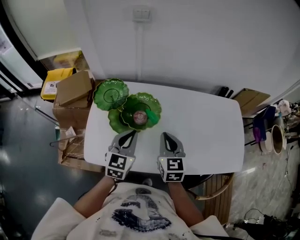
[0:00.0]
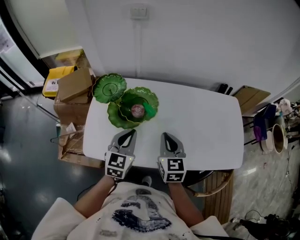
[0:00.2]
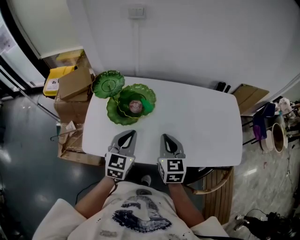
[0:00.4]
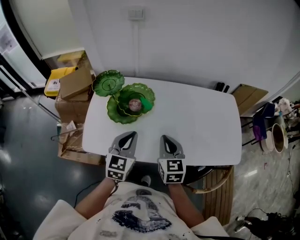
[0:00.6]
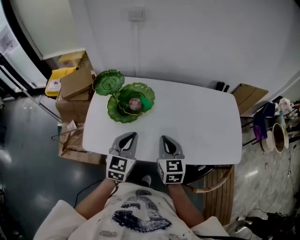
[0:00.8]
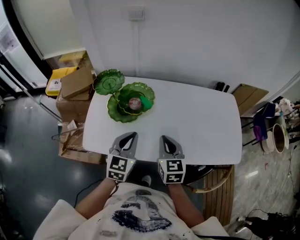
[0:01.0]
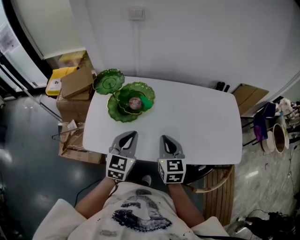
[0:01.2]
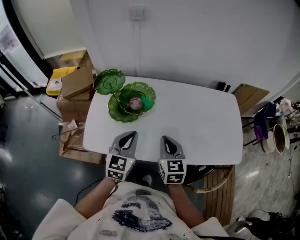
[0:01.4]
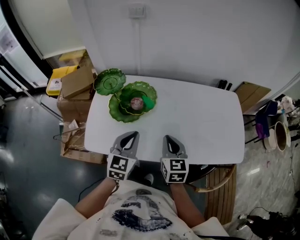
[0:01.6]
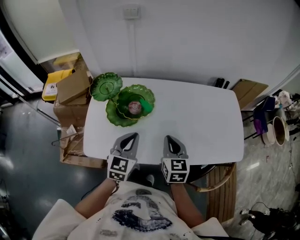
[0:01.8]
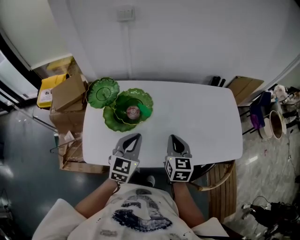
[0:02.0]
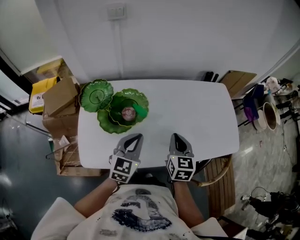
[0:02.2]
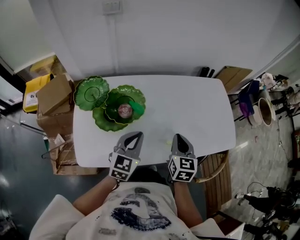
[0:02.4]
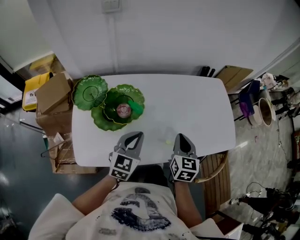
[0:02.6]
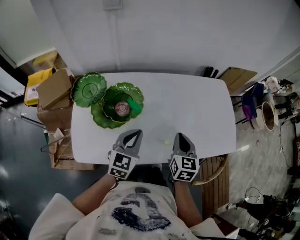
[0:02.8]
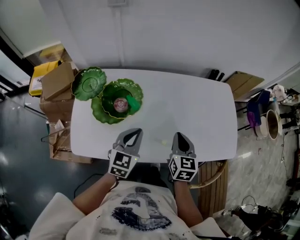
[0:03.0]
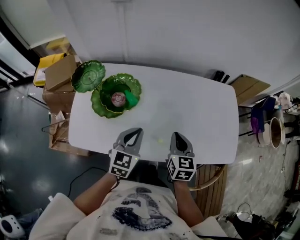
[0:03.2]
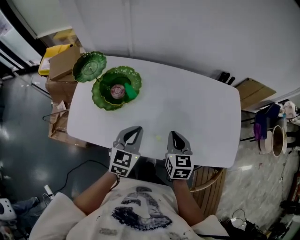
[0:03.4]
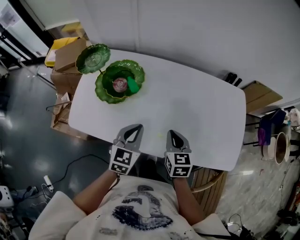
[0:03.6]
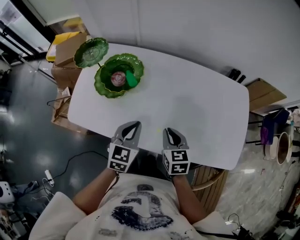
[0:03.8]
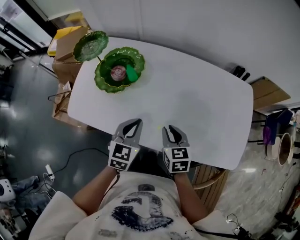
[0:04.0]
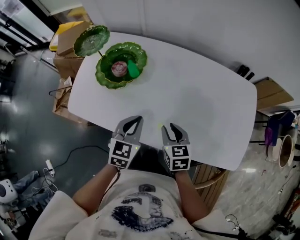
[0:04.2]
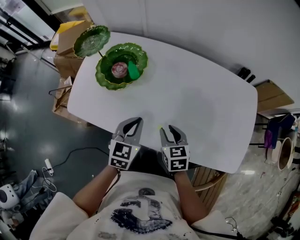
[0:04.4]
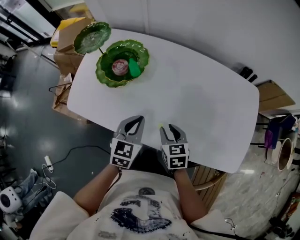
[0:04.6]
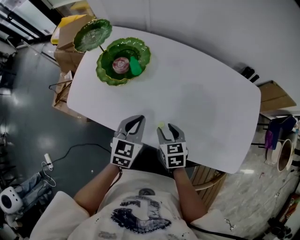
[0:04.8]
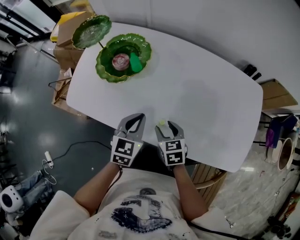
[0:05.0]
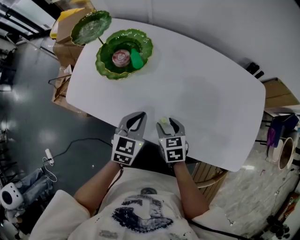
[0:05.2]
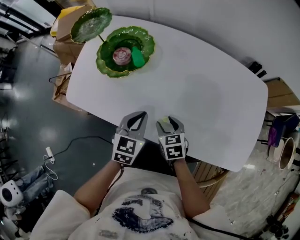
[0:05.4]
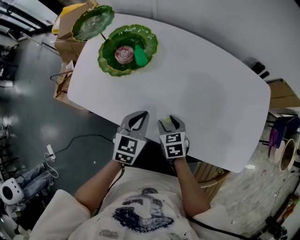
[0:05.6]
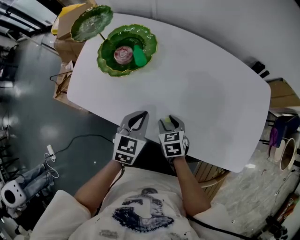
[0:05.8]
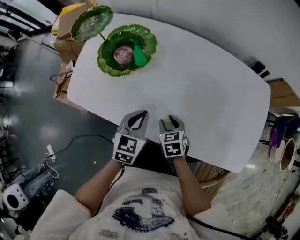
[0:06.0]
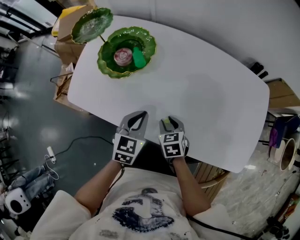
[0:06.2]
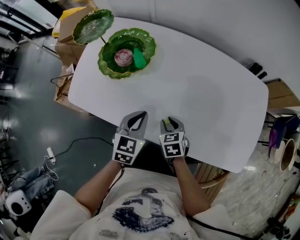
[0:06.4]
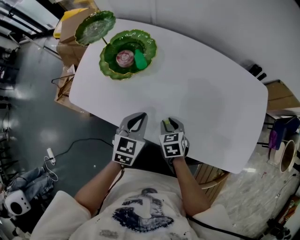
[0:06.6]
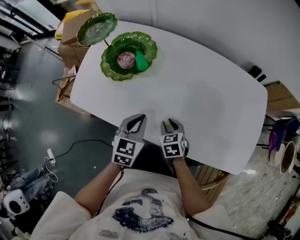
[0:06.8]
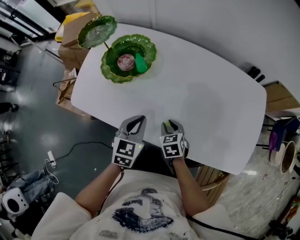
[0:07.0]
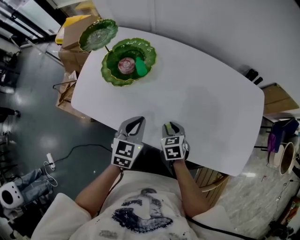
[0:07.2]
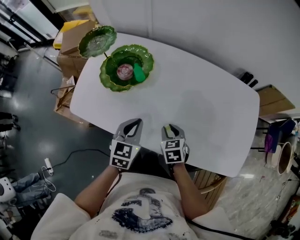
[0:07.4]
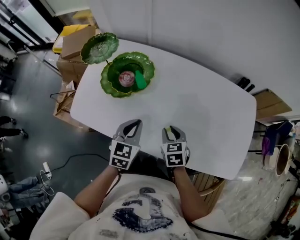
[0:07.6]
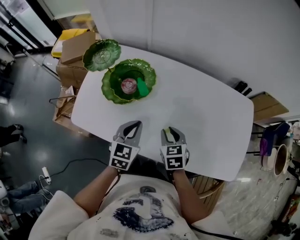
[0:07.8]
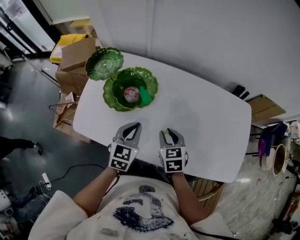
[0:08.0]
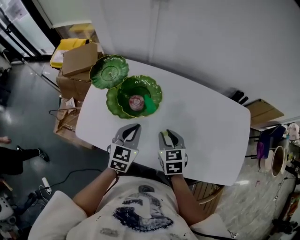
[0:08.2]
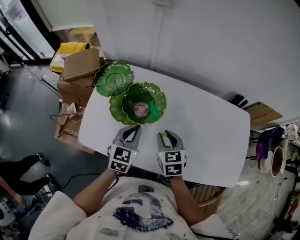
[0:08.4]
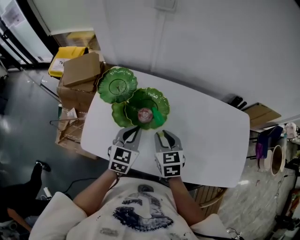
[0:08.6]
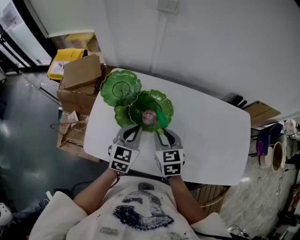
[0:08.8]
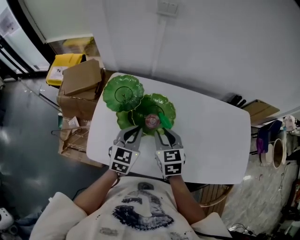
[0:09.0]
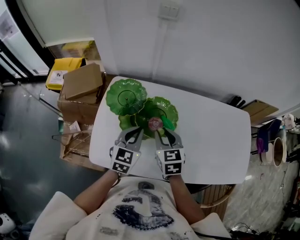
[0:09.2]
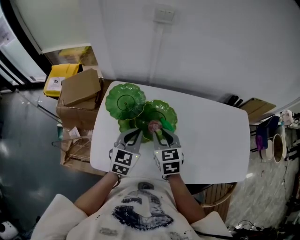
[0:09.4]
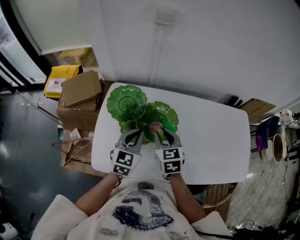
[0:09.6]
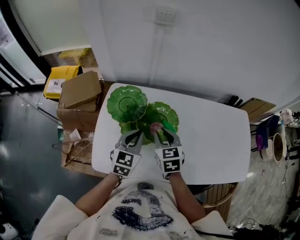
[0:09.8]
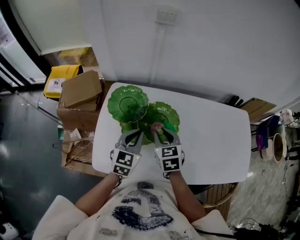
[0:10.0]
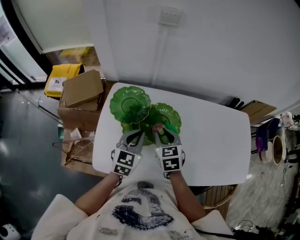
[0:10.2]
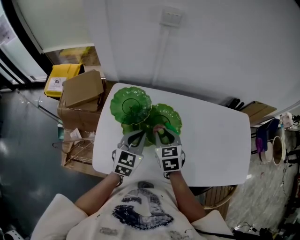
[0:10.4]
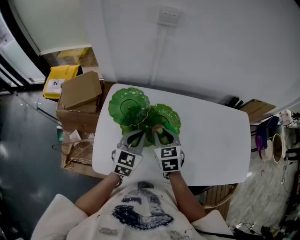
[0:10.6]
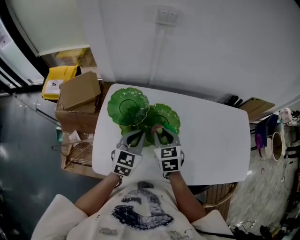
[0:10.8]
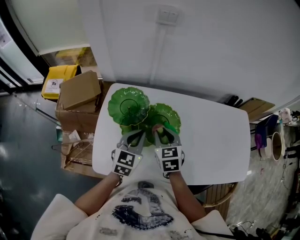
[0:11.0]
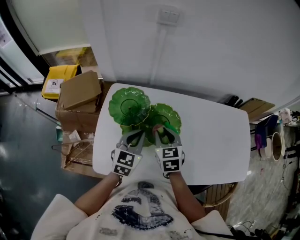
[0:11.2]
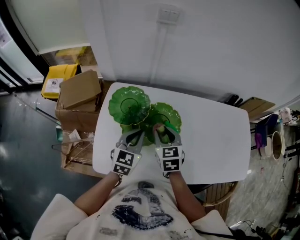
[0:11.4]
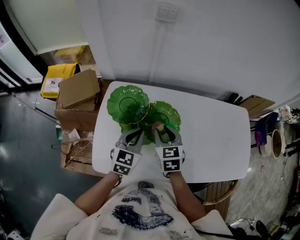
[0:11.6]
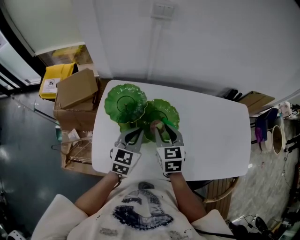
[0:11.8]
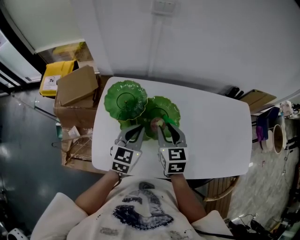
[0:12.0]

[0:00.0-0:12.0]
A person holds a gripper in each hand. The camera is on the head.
0:00.0 to 0:01.6: The grippers both shift backward by roughly 10 cm.
0:01.6 to 0:03.0: The right gripper goes approximately 10 cm to the right and forward; the left gripper heads forward and to the right, covering about 10 cm.
0:03.0 to 0:04.4: The left gripper is displaced downward by approximately 10 cm, and swivels roughly 20 degrees. Meanwhile the right gripper is displaced downward by roughly 15 cm, rotates about 40 degrees, and opens its fingers.
0:04.4 to 0:06.0: The right gripper is displaced downward by approximately 10 cm.
0:06.0 to 0:07.6: The right gripper moves upward, roughly 5 cm; the left gripper changes place by roughly 5 cm.
0:07.6 to 0:09.0: The right gripper moves to the left, upward and forward, some 25 cm, while the left gripper moves to the left, forward and upward, roughly 20 cm.
0:09.0 to 0:10.4: The right gripper changes place by about 5 cm.
0:10.4 to 0:12.0: There are only small adjustments of the grippers.

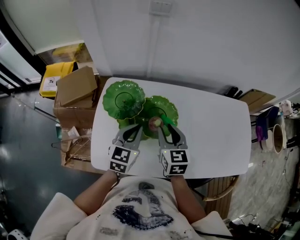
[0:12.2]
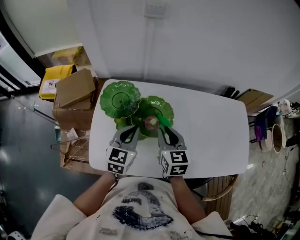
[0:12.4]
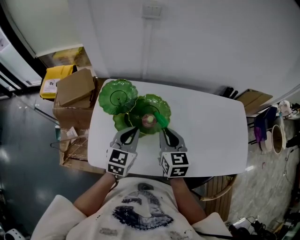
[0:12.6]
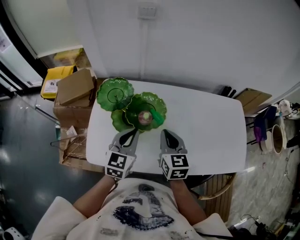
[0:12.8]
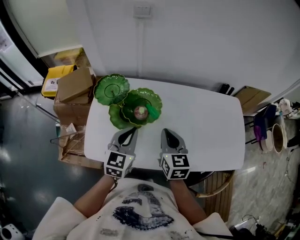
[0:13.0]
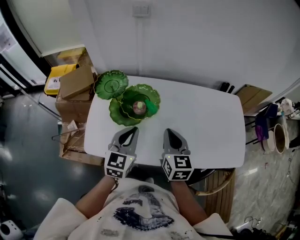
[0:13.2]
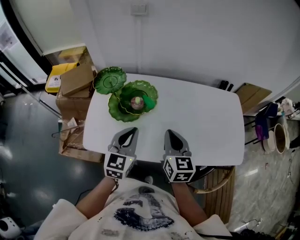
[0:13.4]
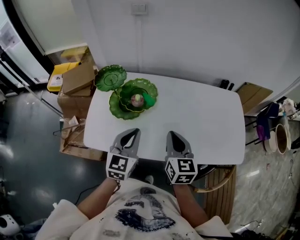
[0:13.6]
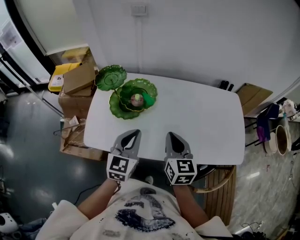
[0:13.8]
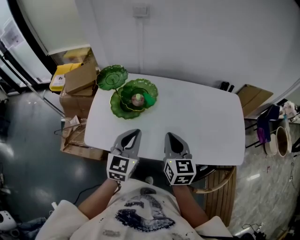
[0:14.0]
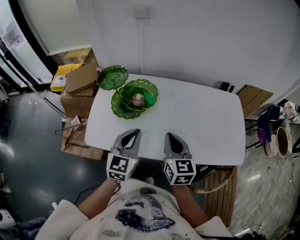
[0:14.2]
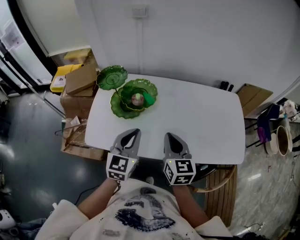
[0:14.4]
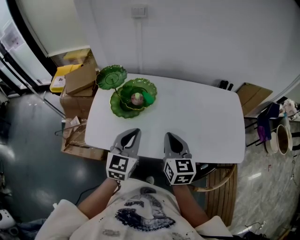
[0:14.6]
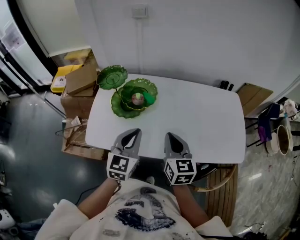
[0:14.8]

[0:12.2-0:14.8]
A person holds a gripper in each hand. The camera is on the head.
0:12.2 to 0:13.4: The right gripper moves backward and to the right, some 20 cm, and closes up. The left gripper goes approximately 15 cm backward, to the right and upward.
0:13.4 to 0:14.8: The left gripper moves about 5 cm.

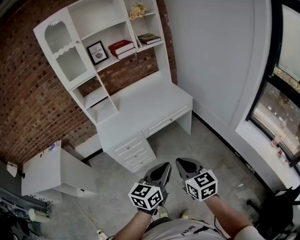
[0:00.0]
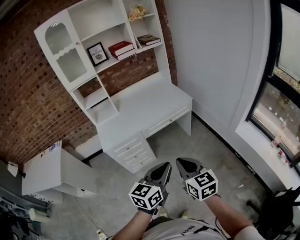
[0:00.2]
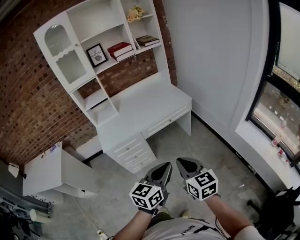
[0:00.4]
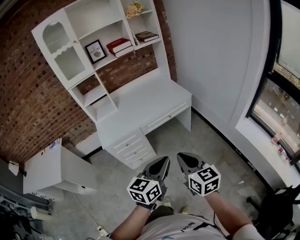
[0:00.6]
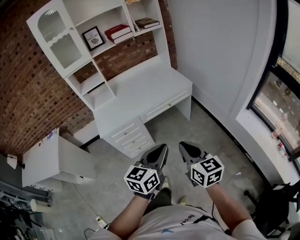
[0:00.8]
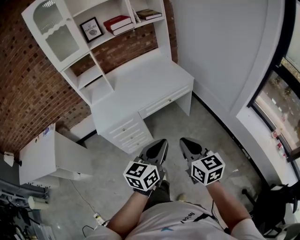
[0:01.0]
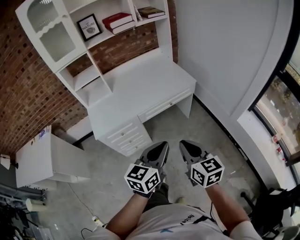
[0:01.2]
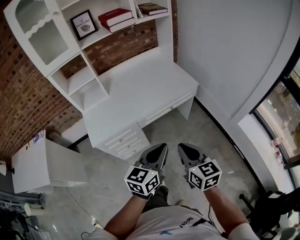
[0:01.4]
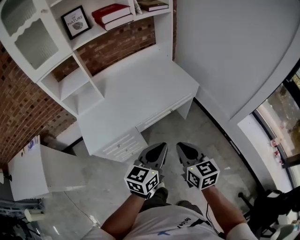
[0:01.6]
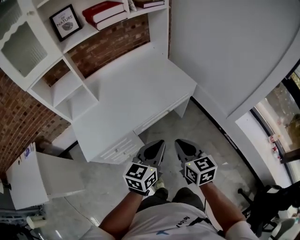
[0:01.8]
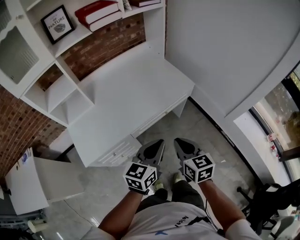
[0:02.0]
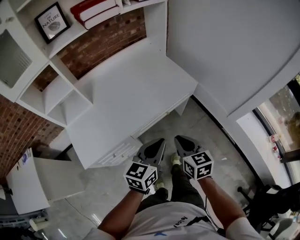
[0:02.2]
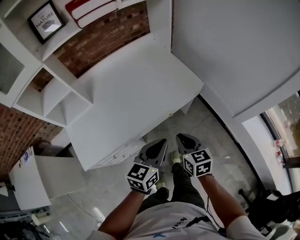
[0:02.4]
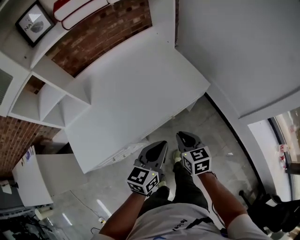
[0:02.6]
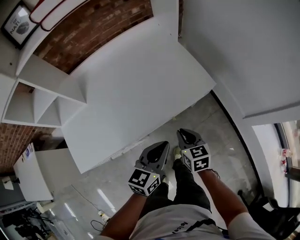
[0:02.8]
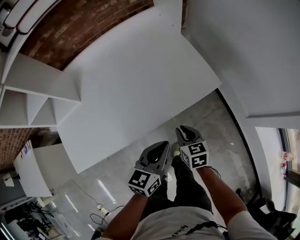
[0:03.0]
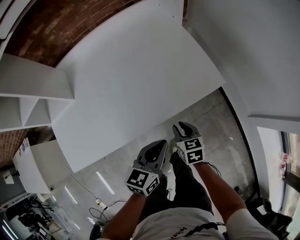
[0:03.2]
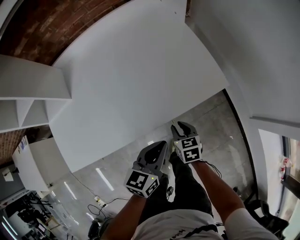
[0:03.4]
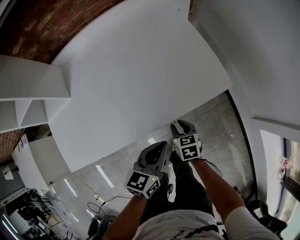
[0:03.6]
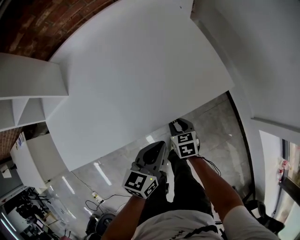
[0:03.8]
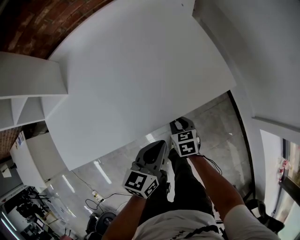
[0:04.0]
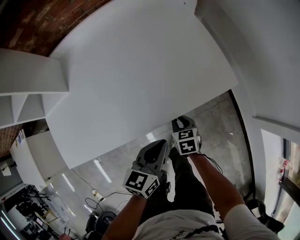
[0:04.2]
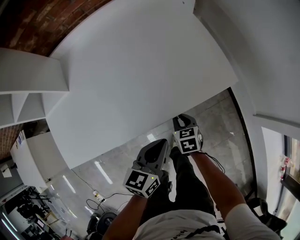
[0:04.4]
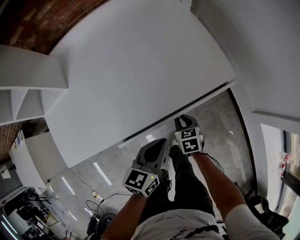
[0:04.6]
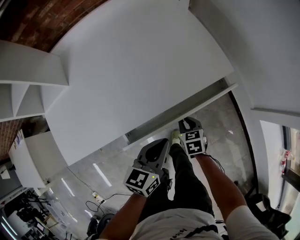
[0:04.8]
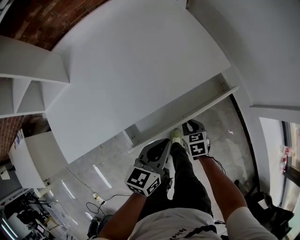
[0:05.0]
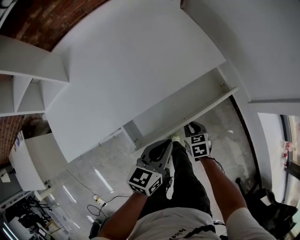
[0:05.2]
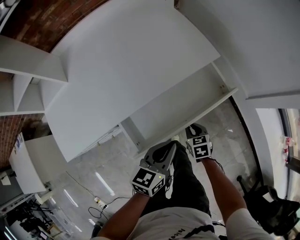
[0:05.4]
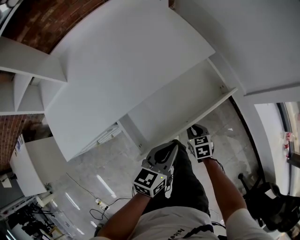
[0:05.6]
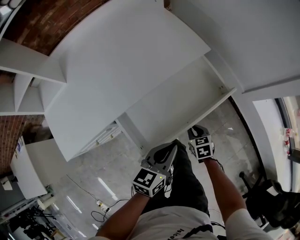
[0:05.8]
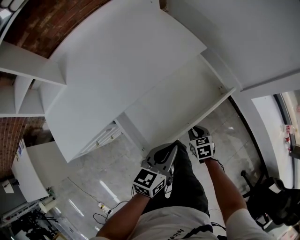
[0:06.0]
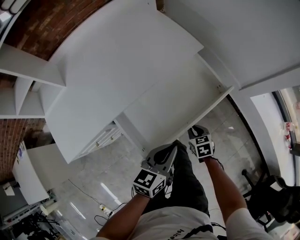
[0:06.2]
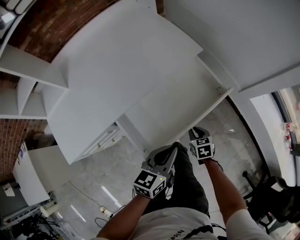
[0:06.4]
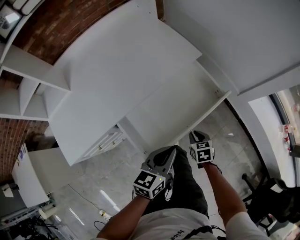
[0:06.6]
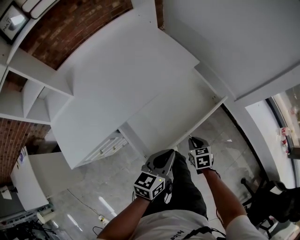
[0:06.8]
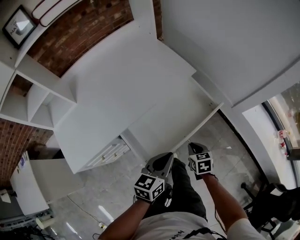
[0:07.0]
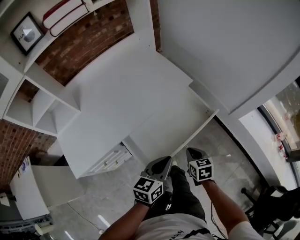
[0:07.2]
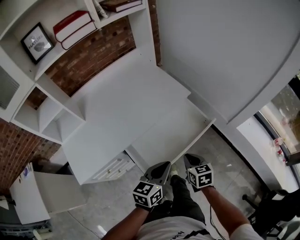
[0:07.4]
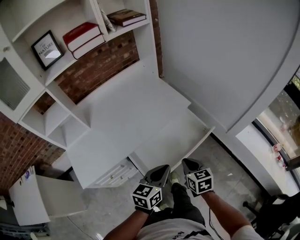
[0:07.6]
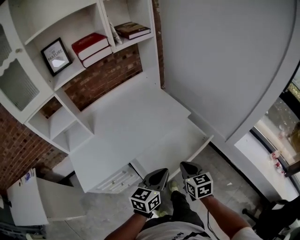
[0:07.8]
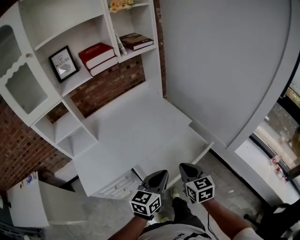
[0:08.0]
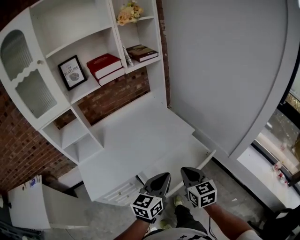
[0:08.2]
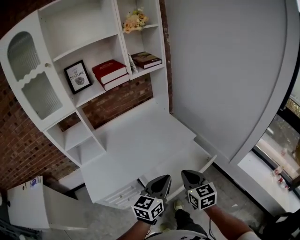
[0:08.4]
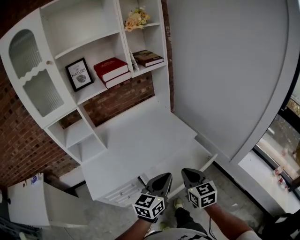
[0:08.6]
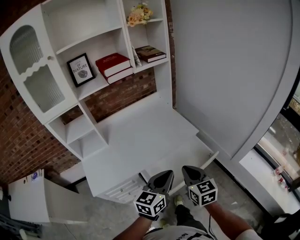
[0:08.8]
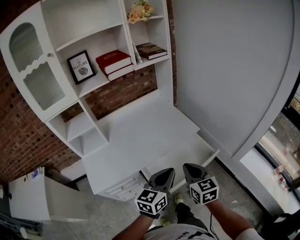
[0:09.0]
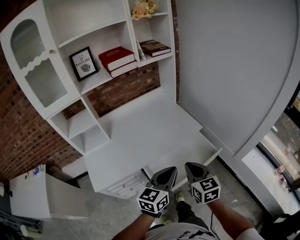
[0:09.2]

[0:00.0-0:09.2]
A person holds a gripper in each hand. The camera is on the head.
0:00.0 to 0:01.6: The grippers both shift forward by approximately 25 cm.
0:01.6 to 0:03.0: Both grippers move forward and downward, roughly 40 cm. The right gripper turns by approximately 20 degrees.
0:03.0 to 0:04.6: The right gripper goes roughly 15 cm downward. The left gripper shifts roughly 10 cm downward.
0:04.6 to 0:06.2: Both grippers move backward and to the right, about 20 cm.
0:06.2 to 0:07.6: The right gripper heads upward, covering some 30 cm, and rotates roughly 20 degrees. The left gripper travels upward by approximately 15 cm.
0:07.6 to 0:09.2: The two grippers go about 15 cm upward. The right gripper changes its angle by some 20 degrees.
